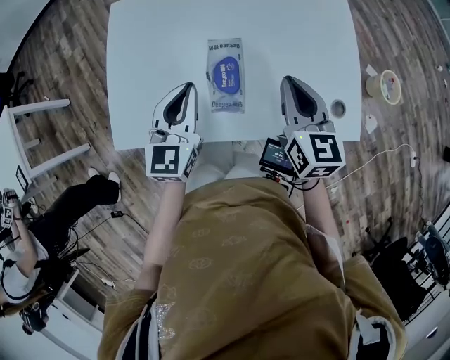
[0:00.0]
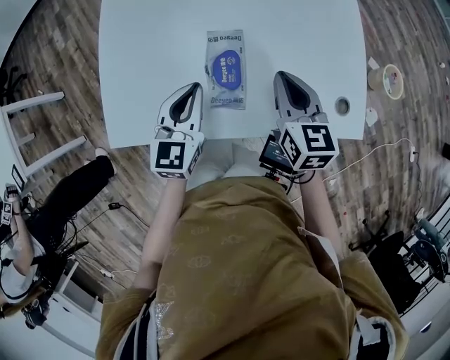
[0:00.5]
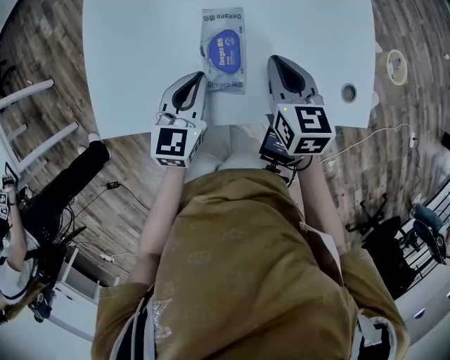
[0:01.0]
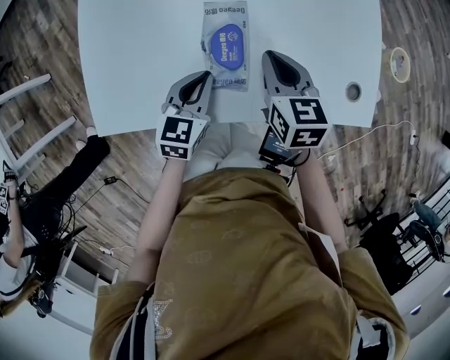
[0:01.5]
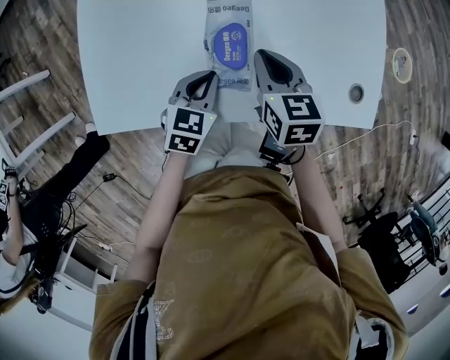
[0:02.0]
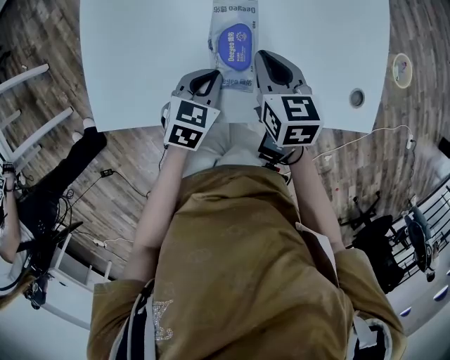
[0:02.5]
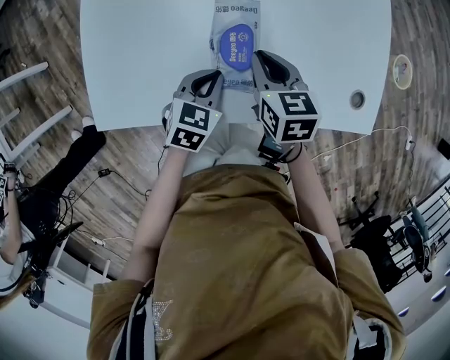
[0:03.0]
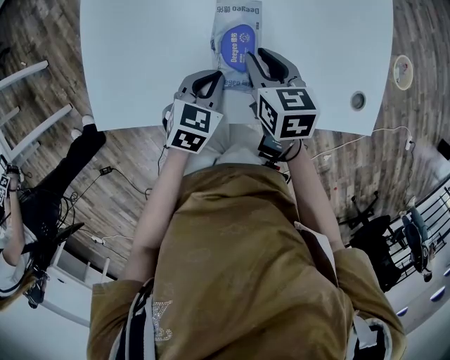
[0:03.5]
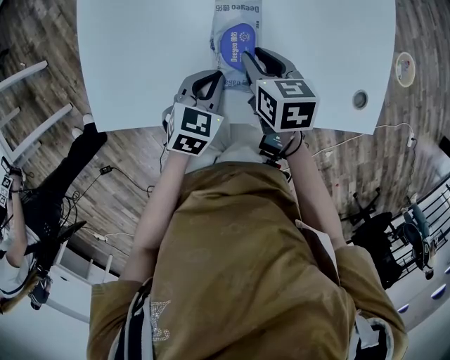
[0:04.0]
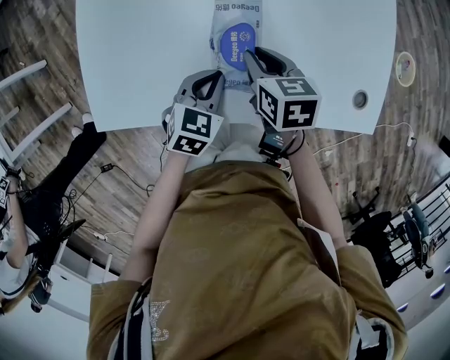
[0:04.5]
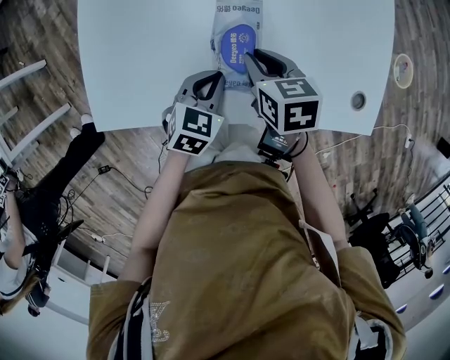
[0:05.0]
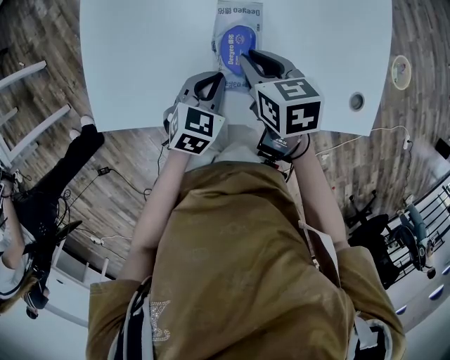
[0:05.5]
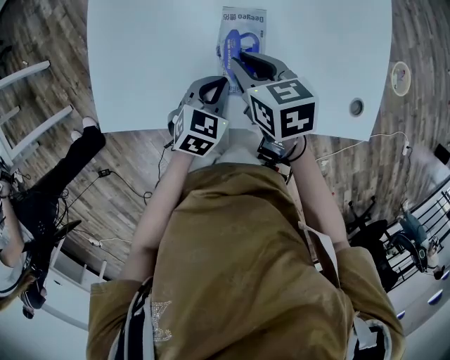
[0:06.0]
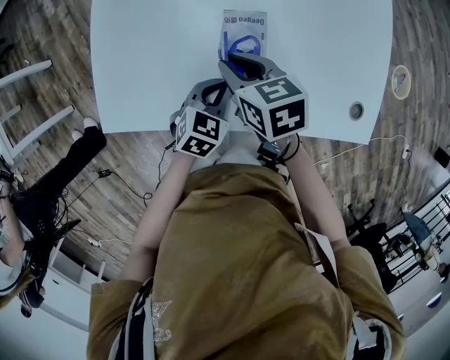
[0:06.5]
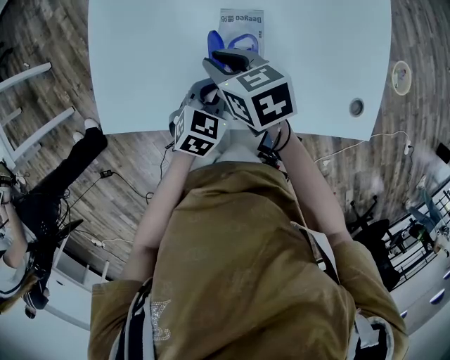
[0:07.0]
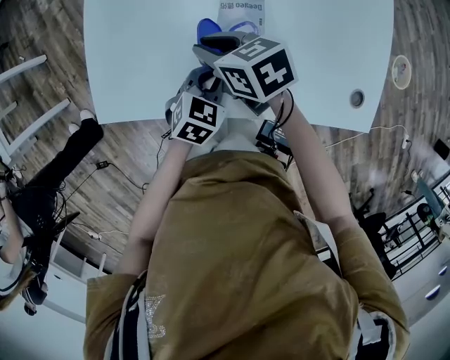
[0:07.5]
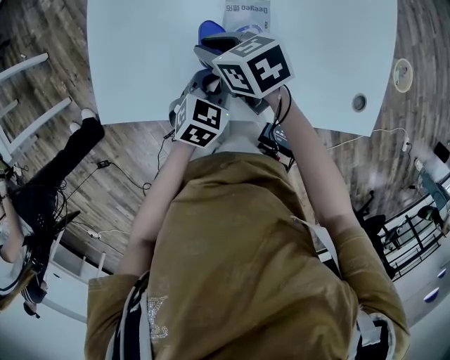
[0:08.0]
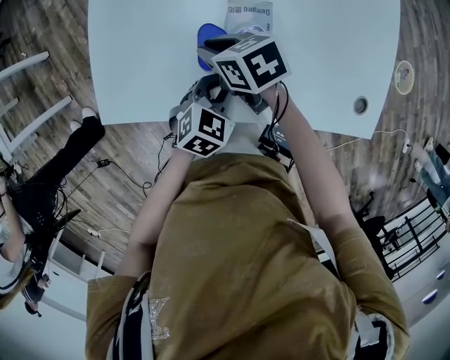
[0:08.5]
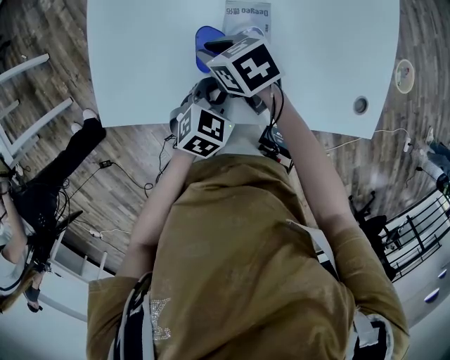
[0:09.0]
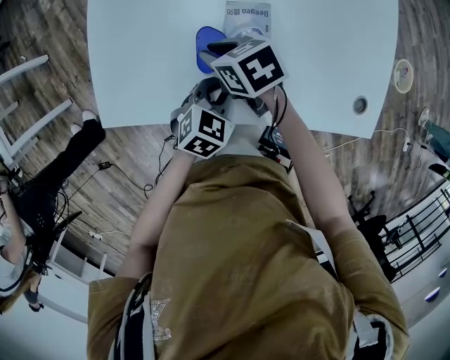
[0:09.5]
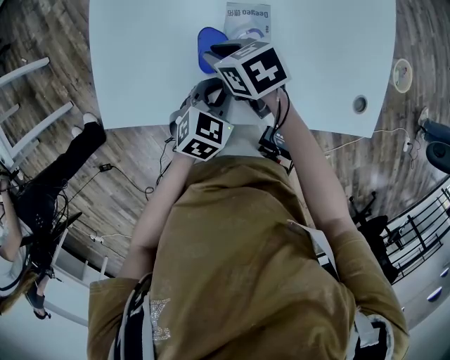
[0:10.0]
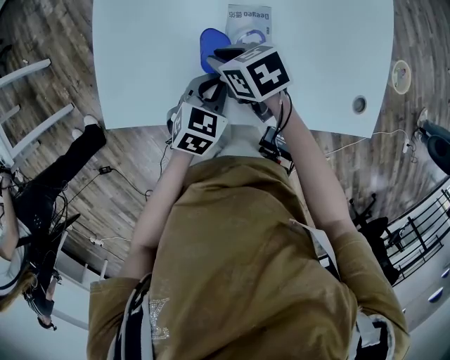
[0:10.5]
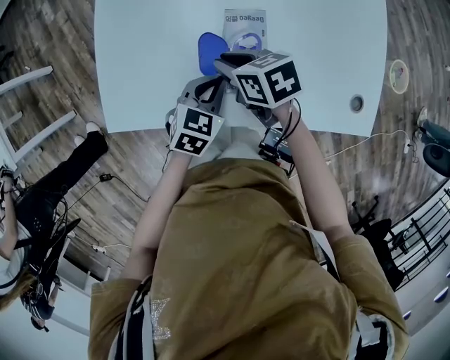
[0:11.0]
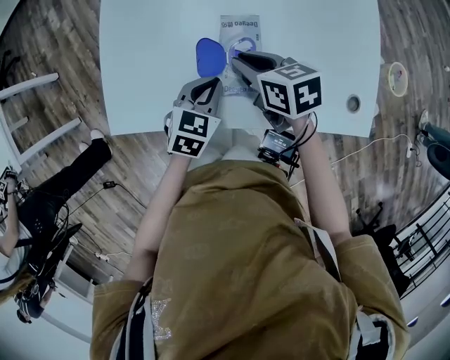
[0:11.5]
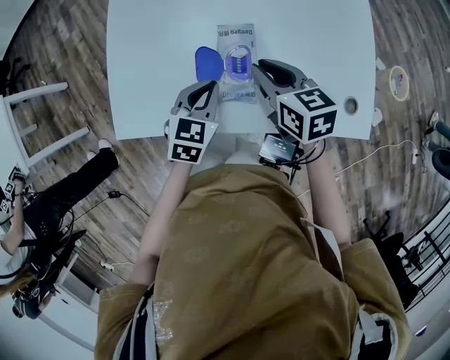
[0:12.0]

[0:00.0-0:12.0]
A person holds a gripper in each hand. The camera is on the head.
0:00.0 to 0:02.0: The left gripper moves downward, some 20 cm, and swivels some 30 degrees. The right gripper is displaced downward and to the left by some 15 cm, and turns by some 20 degrees.
0:02.0 to 0:04.0: The right gripper ends up approximately 5 cm from where it was, and opens.
0:04.0 to 0:06.0: The right gripper changes place by roughly 5 cm.
0:06.0 to 0:08.0: The right gripper moves to the left, roughly 10 cm.
0:08.0 to 0:10.0: There are only small adjustments of the grippers.
0:10.0 to 0:12.0: The right gripper shifts approximately 15 cm to the right and upward, and swivels about 30 degrees. The left gripper shifts approximately 5 cm upward.

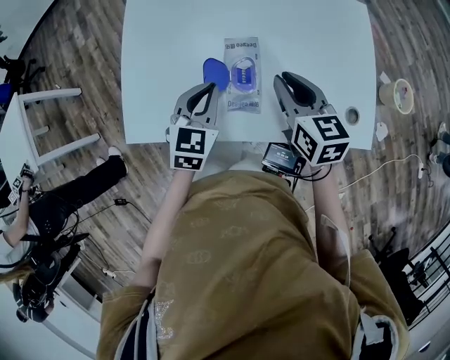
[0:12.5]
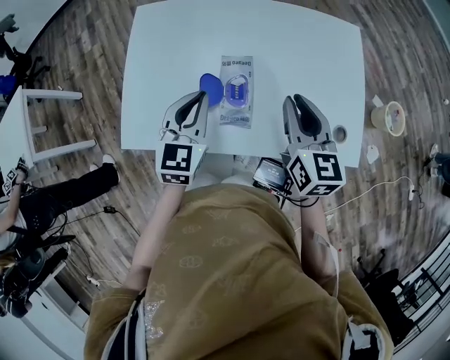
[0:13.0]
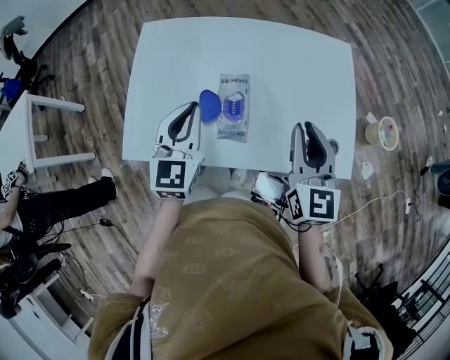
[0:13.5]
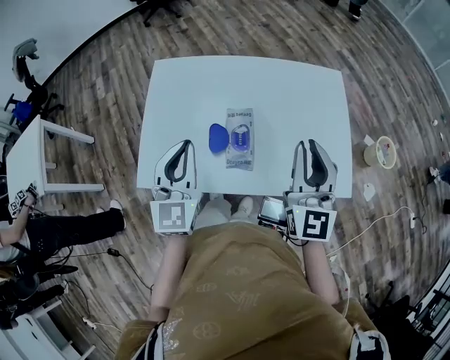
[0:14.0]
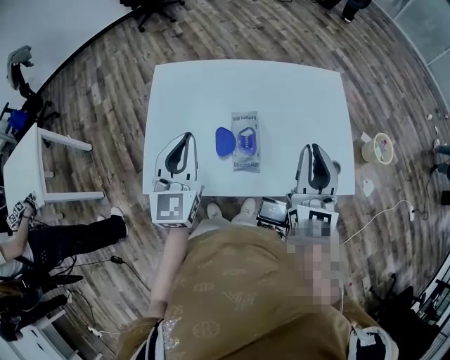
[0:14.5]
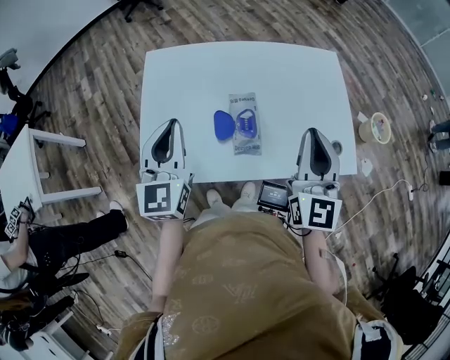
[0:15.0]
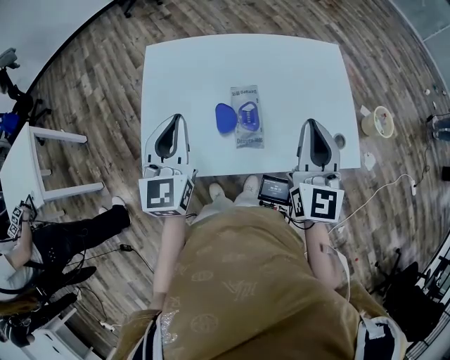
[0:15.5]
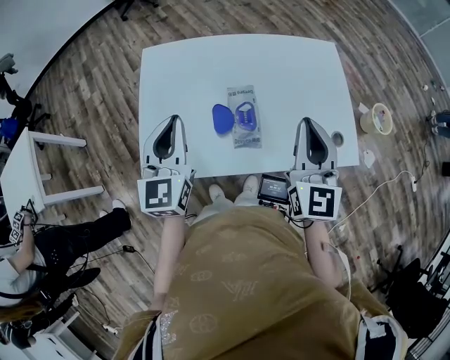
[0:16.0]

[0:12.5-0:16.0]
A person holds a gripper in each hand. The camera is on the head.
0:12.5 to 0:14.5: The right gripper travels upward and backward by roughly 20 cm, and points its fingers approximately 30 degrees further upward. Meanwhile the left gripper shifts approximately 20 cm upward, and turns by about 30 degrees.
0:14.5 to 0:16.0: The grippers move only a little.

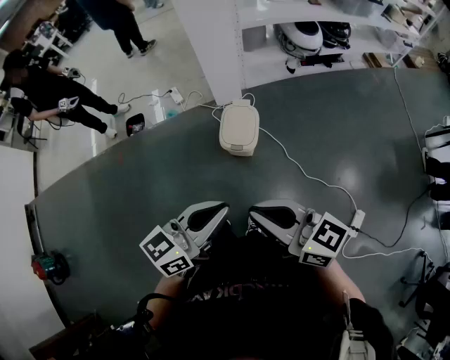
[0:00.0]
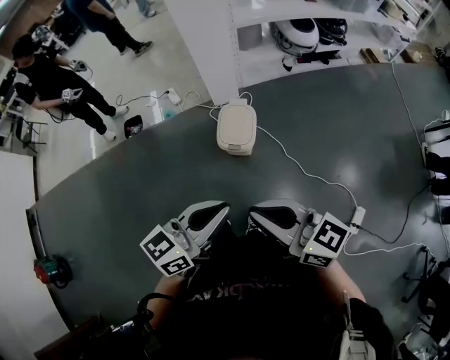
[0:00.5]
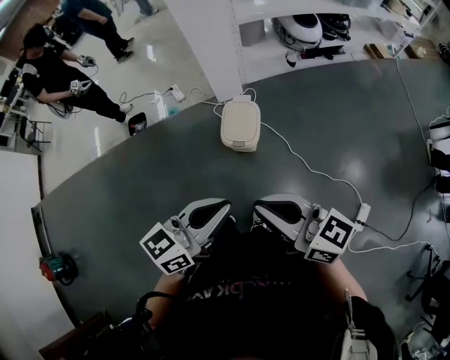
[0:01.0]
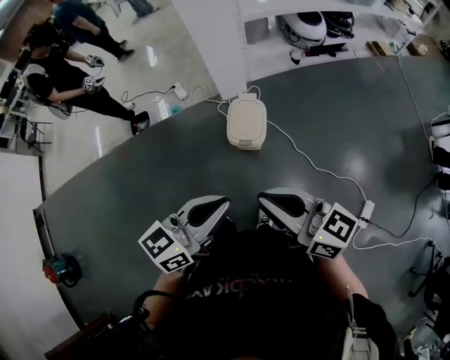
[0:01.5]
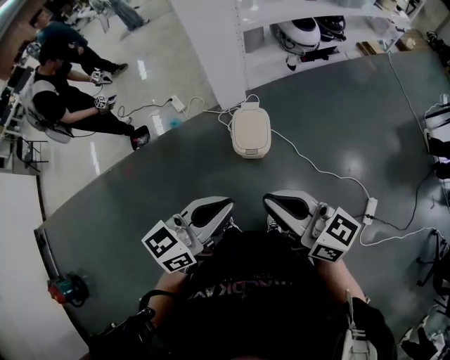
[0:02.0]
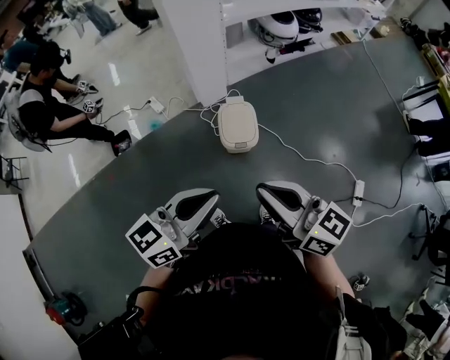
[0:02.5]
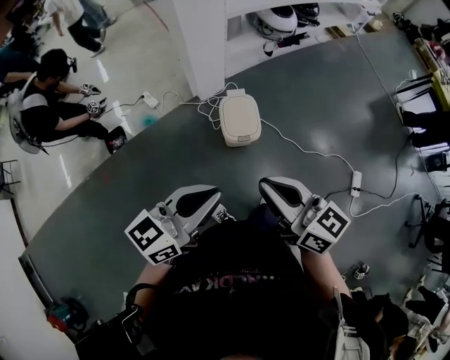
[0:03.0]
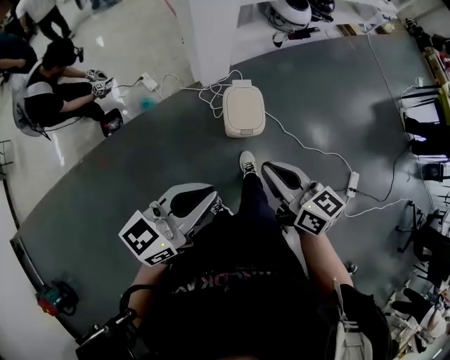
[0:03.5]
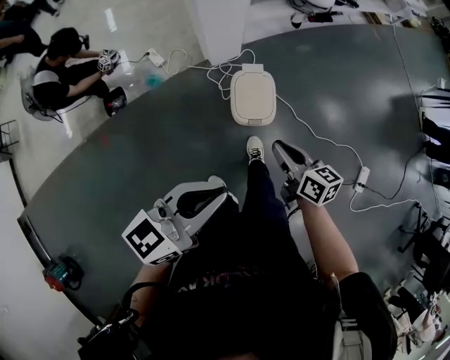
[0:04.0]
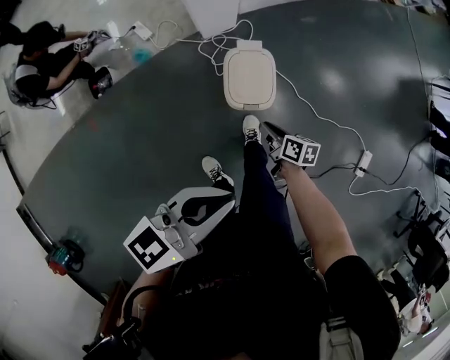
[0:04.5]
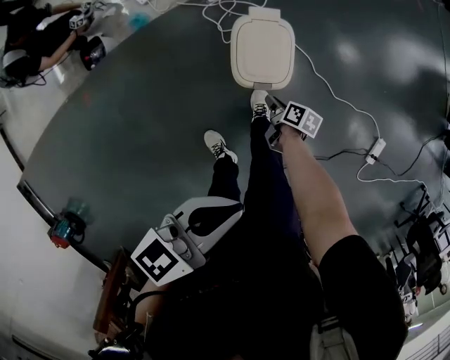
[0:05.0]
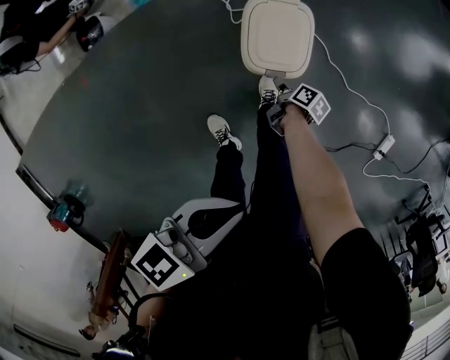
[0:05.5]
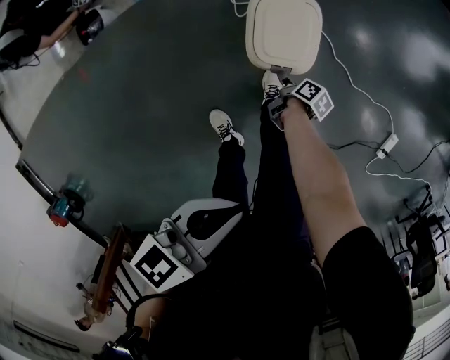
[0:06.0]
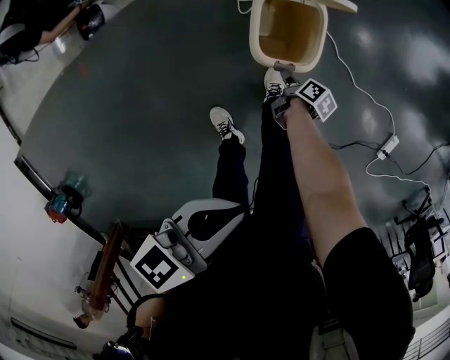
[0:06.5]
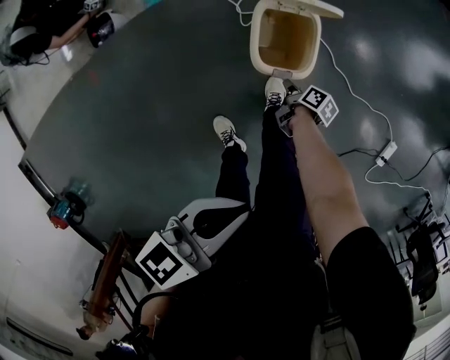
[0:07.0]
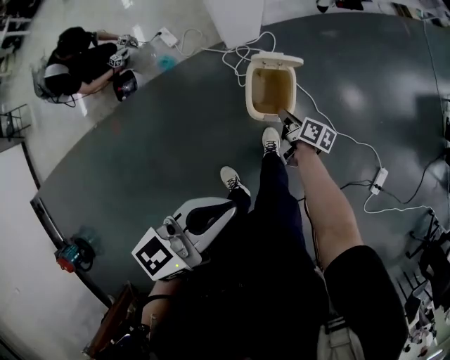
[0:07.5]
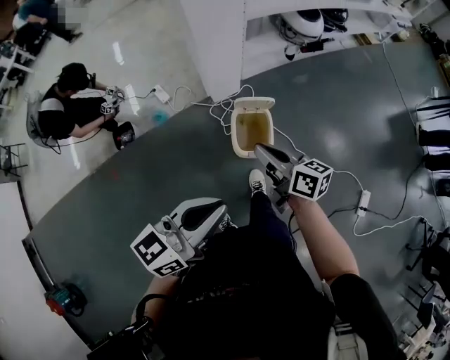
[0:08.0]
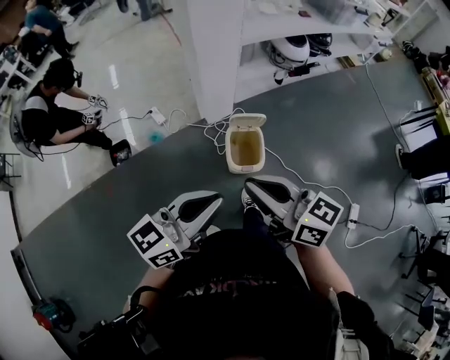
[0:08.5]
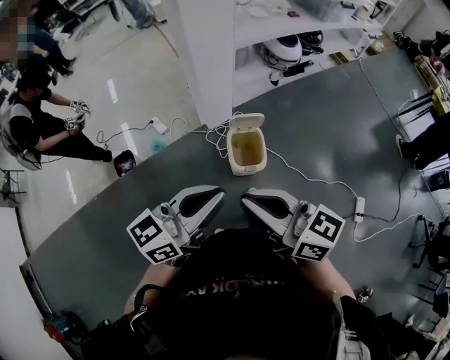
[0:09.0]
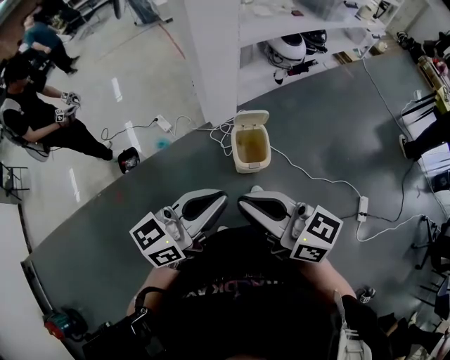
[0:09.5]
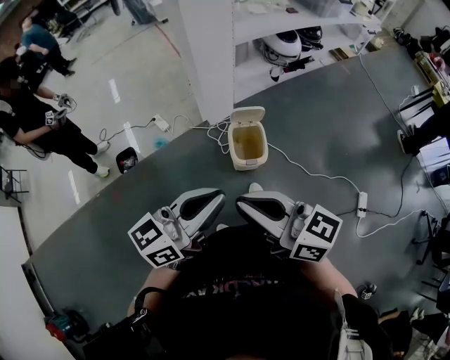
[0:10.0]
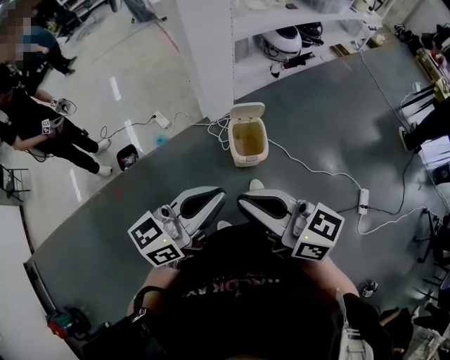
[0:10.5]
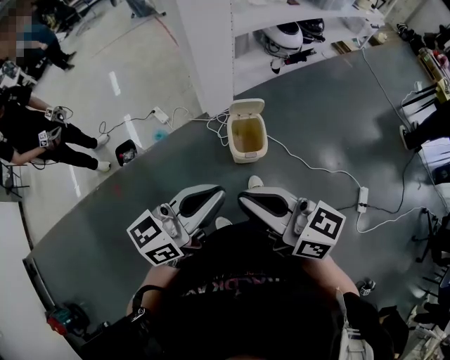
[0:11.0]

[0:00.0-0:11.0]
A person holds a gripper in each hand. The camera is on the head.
0:00.0 to 0:02.0: The two grippers go some 10 cm to the left and forward.
0:02.0 to 0:03.5: The left gripper moves to the left, about 15 cm, while the right gripper is displaced to the left, downward and forward by approximately 15 cm, and swivels roughly 20 degrees.
0:03.5 to 0:05.5: The left gripper is displaced downward and forward by approximately 25 cm, and turns by roughly 30 degrees. The right gripper goes approximately 60 cm downward, rotates around the line of its fingers by about 60 degrees, clockwise from behind, and opens.
0:05.5 to 0:07.5: The right gripper moves upward, roughly 25 cm, turns by about 30 degrees, and closes its fingers. The left gripper moves upward, about 15 cm.
0:07.5 to 0:09.0: The right gripper travels upward and backward by some 60 cm, and points its fingers about 30 degrees further upward, while the left gripper shifts about 15 cm upward and backward, and rotates some 20 degrees.
0:09.0 to 0:11.0: There are only small adjustments of the grippers.
